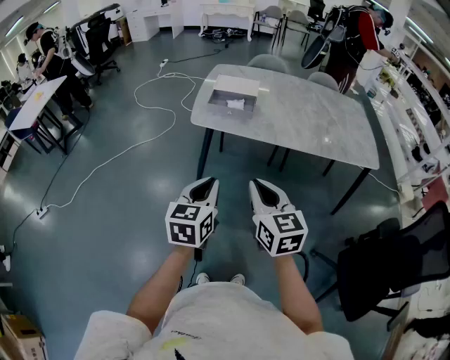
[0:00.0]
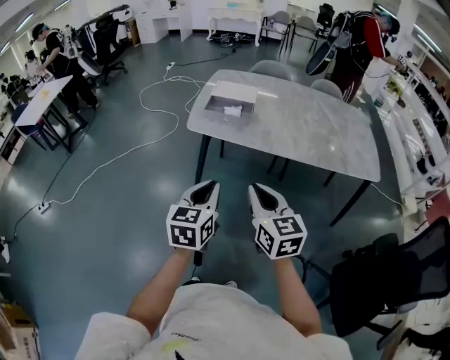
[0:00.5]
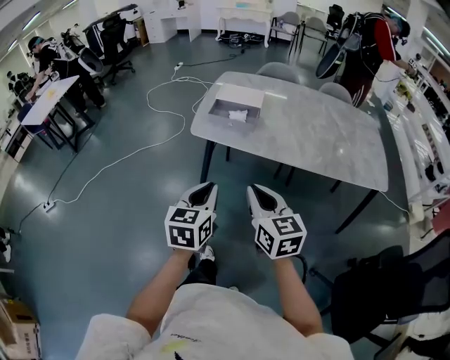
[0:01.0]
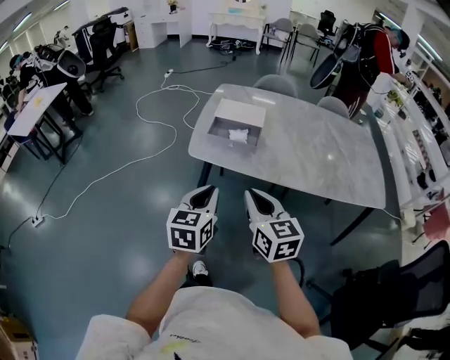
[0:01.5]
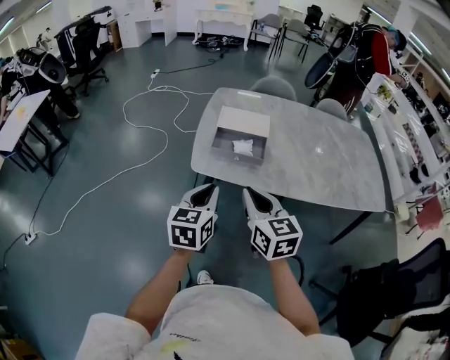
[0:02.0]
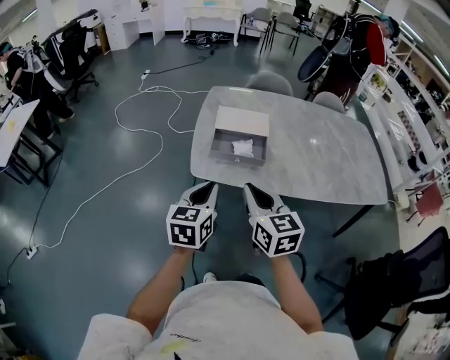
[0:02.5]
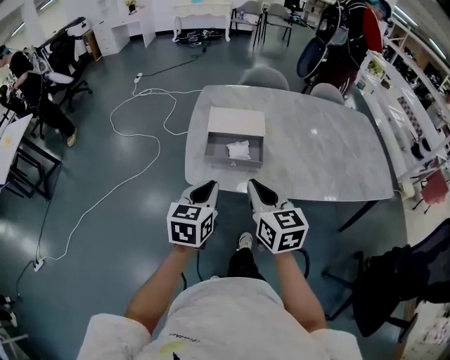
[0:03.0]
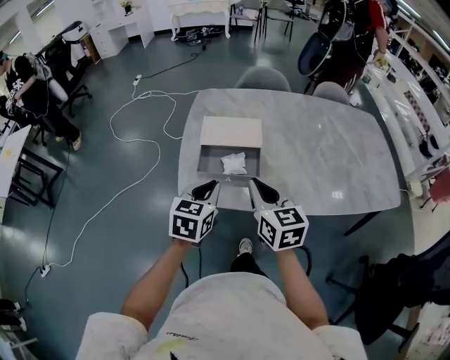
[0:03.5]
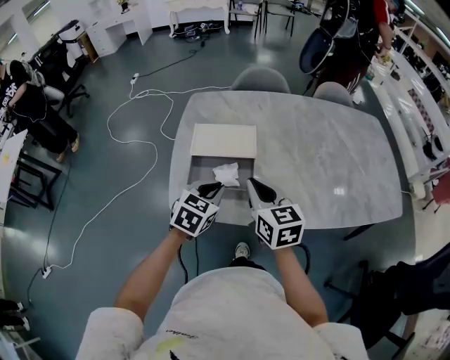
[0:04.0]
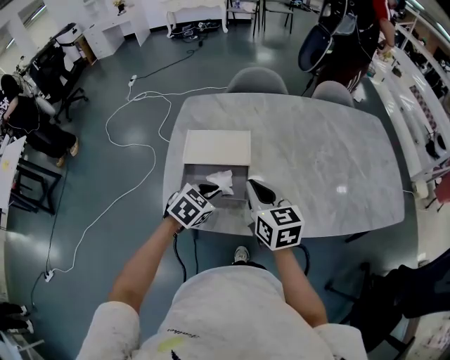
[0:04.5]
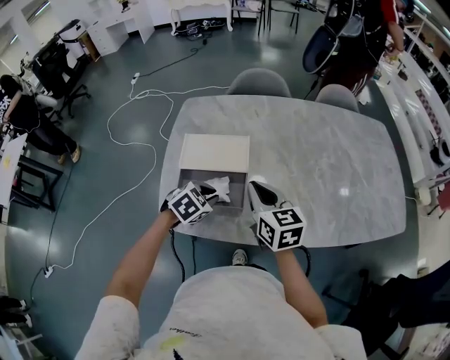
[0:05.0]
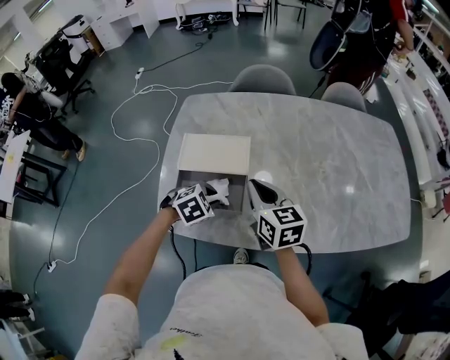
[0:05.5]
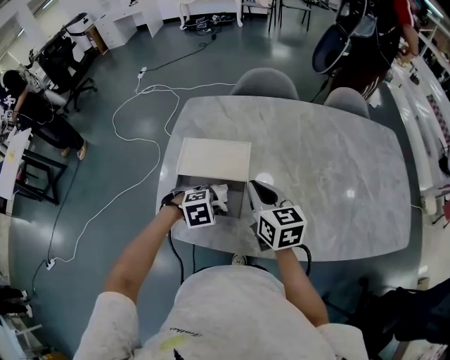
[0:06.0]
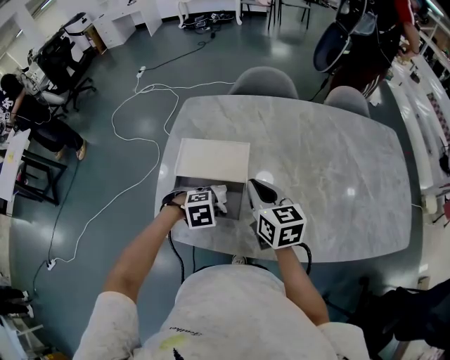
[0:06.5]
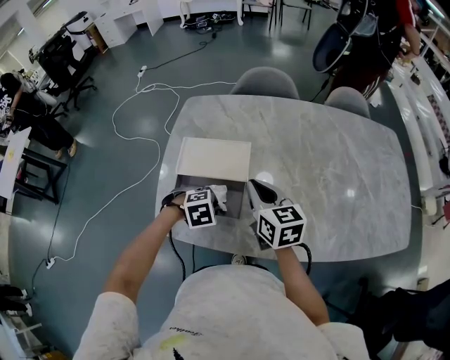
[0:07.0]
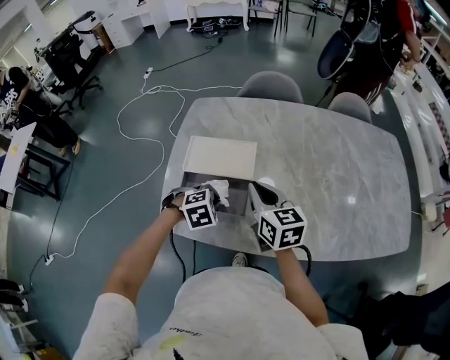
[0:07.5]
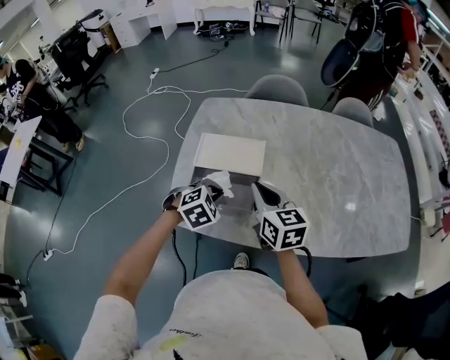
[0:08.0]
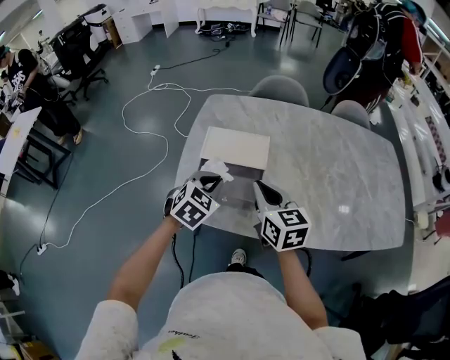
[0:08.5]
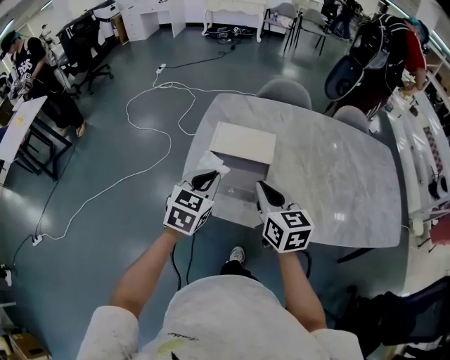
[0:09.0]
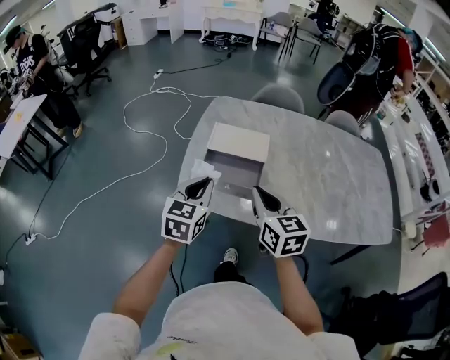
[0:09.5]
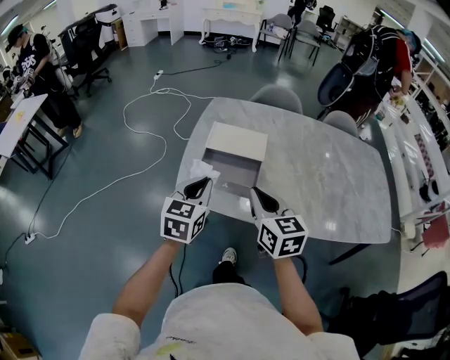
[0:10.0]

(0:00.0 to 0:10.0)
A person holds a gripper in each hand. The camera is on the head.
0:00.0 - 0:02.0: The two grippers go approximately 25 cm forward.
0:02.0 - 0:04.0: The left gripper heads forward and downward, covering some 25 cm, and turns by about 30 degrees. The right gripper is displaced forward by some 25 cm.
0:04.0 - 0:06.0: The left gripper travels downward and forward by about 15 cm, and points its fingers roughly 40 degrees further downward. Meanwhile the right gripper moves forward, roughly 10 cm.
0:06.0 - 0:08.0: The right gripper moves about 5 cm. The left gripper shifts some 5 cm upward, and rotates some 20 degrees.
0:08.0 - 0:10.0: The right gripper goes about 15 cm backward and upward, while the left gripper shifts roughly 20 cm upward, backward and to the left, and tips its fingers upward by about 40 degrees.

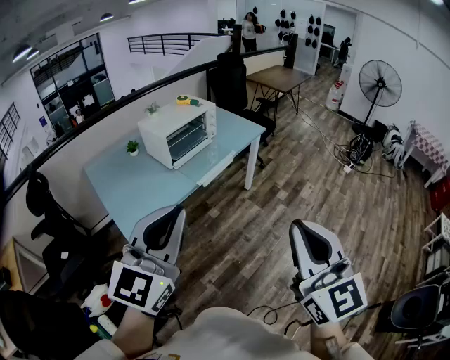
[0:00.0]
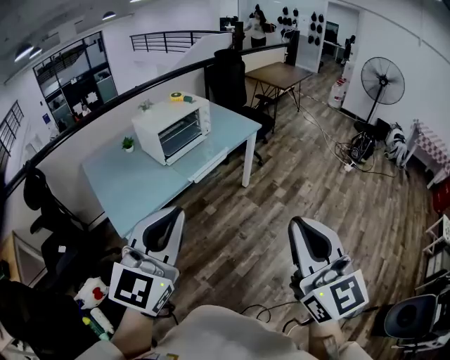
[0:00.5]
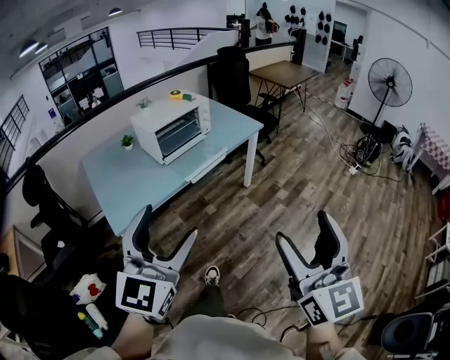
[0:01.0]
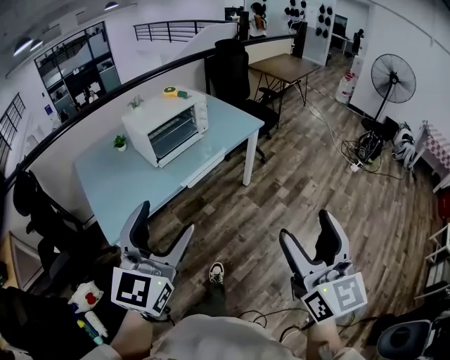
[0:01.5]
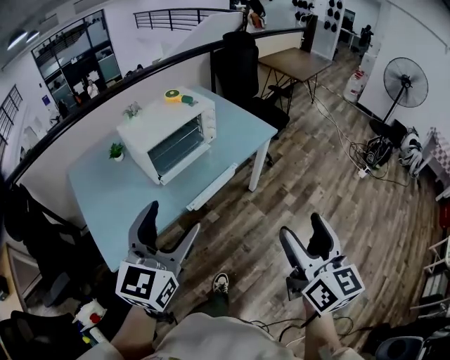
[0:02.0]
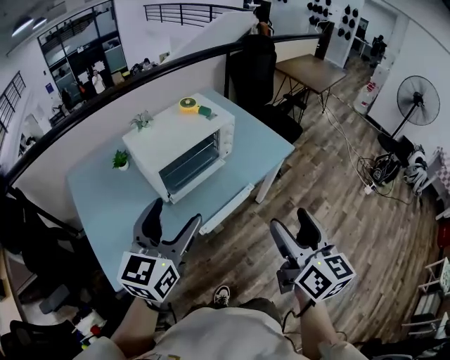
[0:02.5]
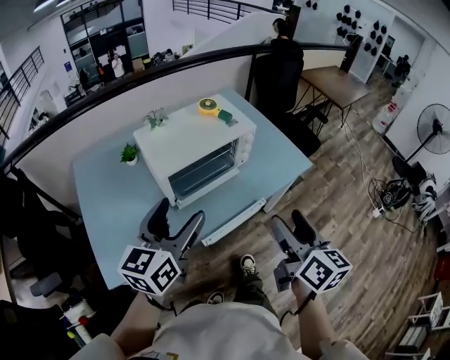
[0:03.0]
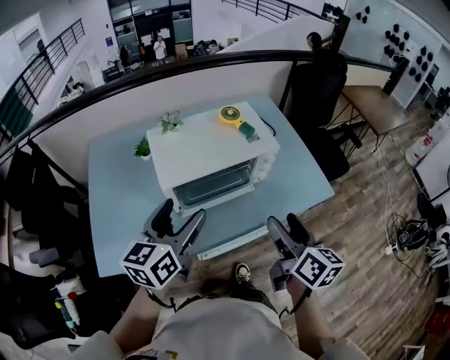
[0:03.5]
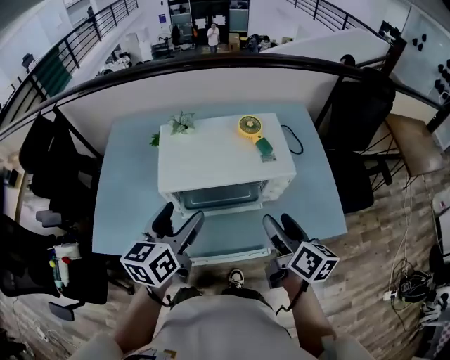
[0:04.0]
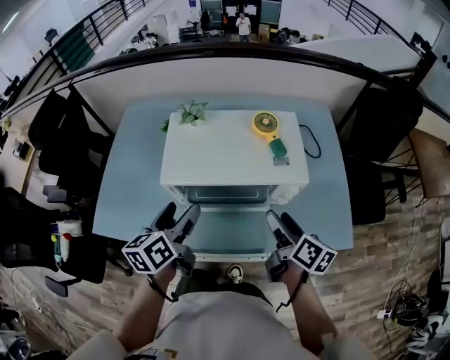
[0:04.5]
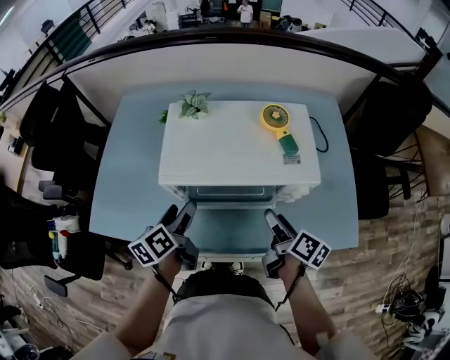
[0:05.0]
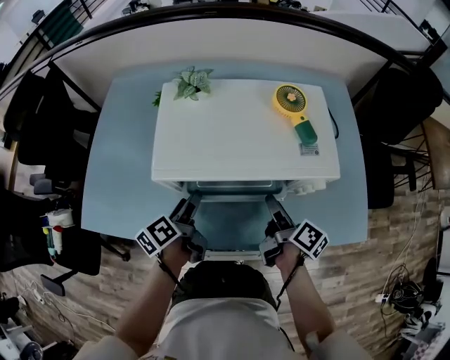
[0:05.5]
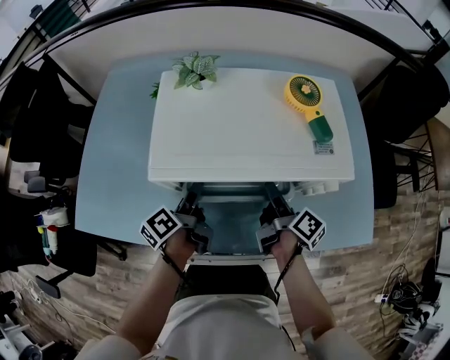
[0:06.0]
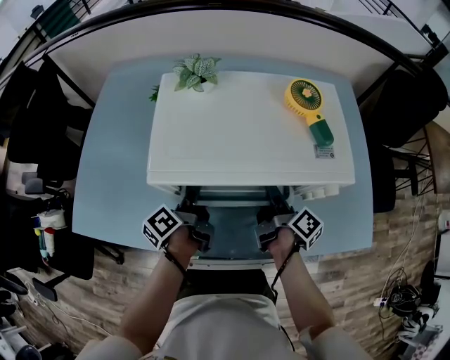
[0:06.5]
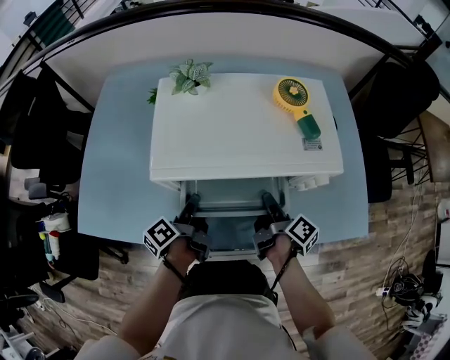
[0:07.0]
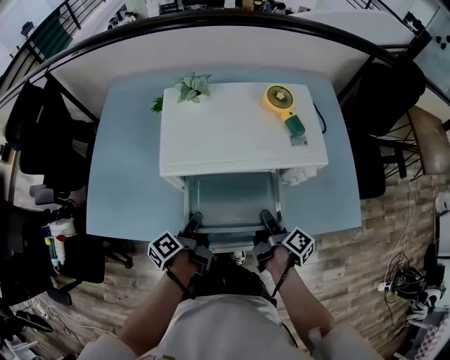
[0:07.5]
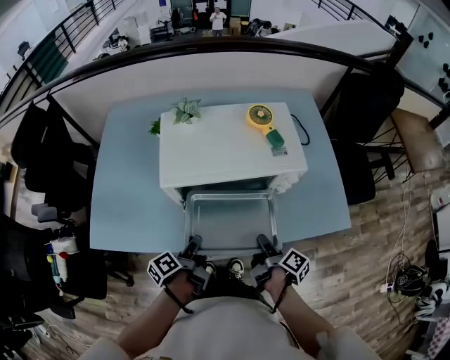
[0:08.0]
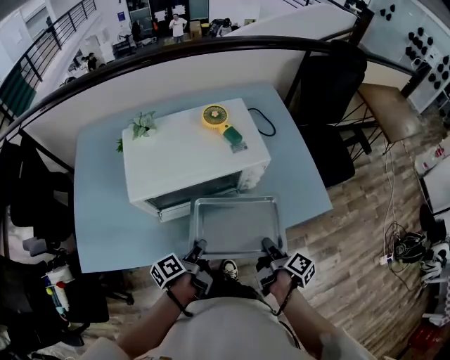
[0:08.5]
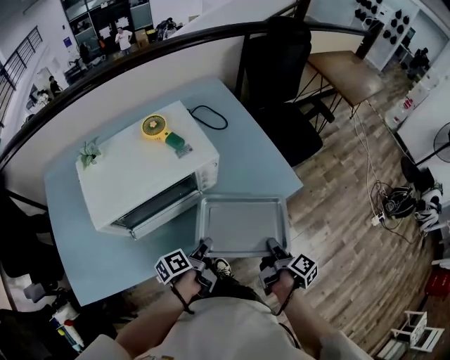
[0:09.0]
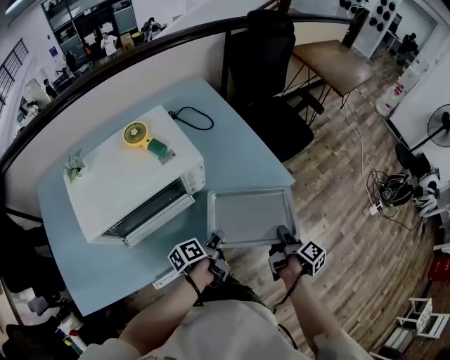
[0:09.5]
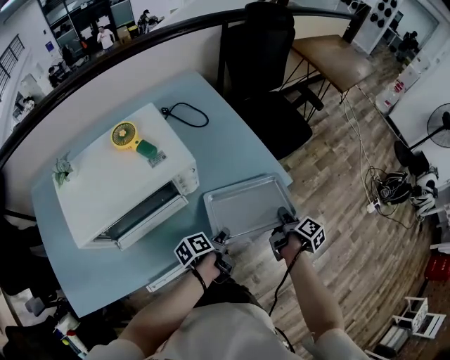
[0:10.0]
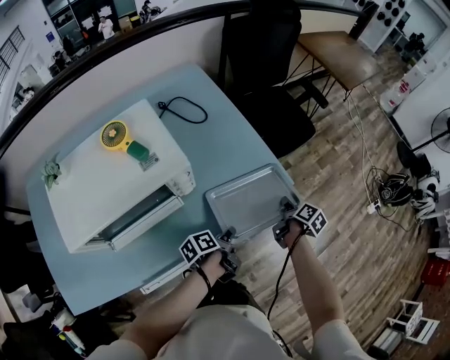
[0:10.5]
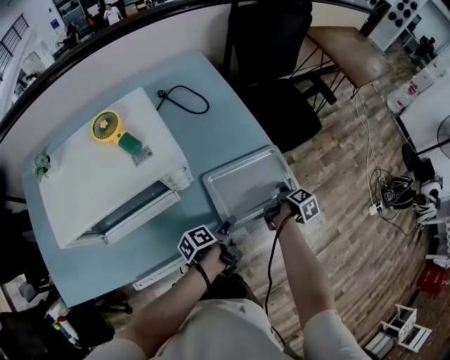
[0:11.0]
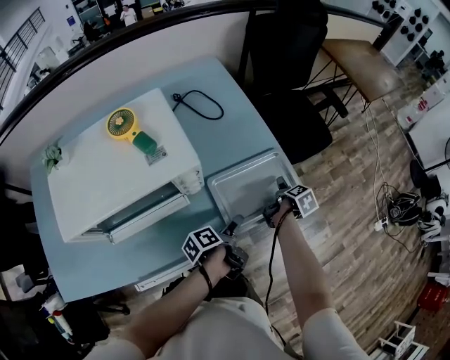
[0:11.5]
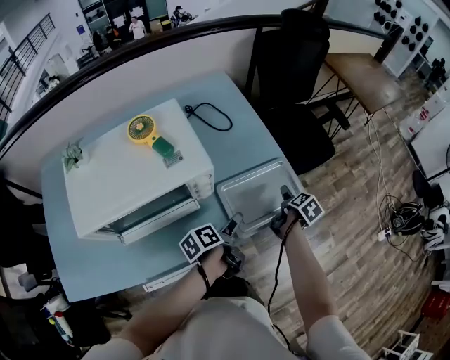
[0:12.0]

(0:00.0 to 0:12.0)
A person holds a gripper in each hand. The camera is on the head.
0:00.0 - 0:02.0: The grippers both shift forward by about 30 cm. The right gripper turns by approximately 20 degrees, and opens its fingers. Meanwhile the left gripper opens up.
0:02.0 - 0:04.0: The left gripper ends up roughly 35 cm from where it was, and changes its angle by some 50 degrees, while the right gripper ends up roughly 50 cm from where it was, and turns by about 50 degrees.
0:04.0 - 0:06.0: The right gripper moves downward and forward, roughly 25 cm, and turns by about 30 degrees. Meanwhile the left gripper travels downward by about 30 cm, and rotates around the line of its fingers by roughly 50 degrees, counterclockwise from behind.
0:06.0 - 0:08.0: Both grippers travel together backward, about 15 cm. The left gripper closes up; the right gripper closes up.
0:08.0 - 0:10.0: The right gripper moves about 35 cm, and swivels approximately 40 degrees. Meanwhile the left gripper changes place by approximately 35 cm, and turns by approximately 40 degrees.
0:10.0 - 0:12.0: The right gripper moves forward, some 10 cm, rotates approximately 30 degrees, and opens its fingers; the left gripper is displaced forward by about 5 cm, and opens up.

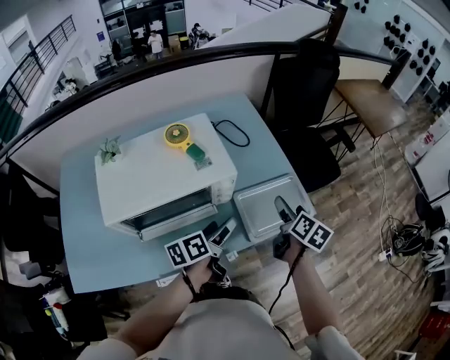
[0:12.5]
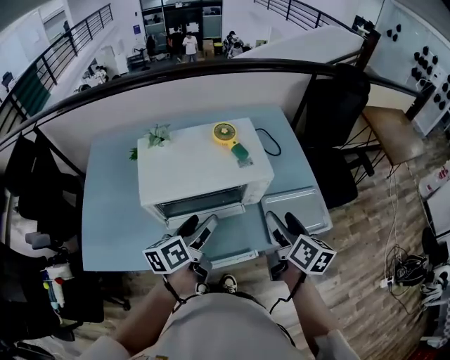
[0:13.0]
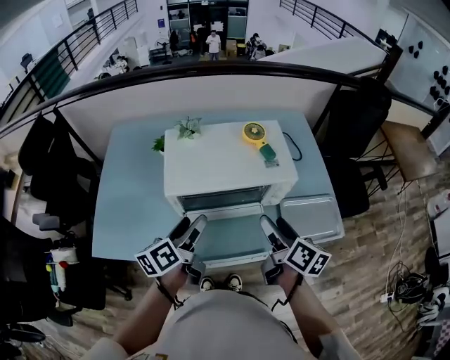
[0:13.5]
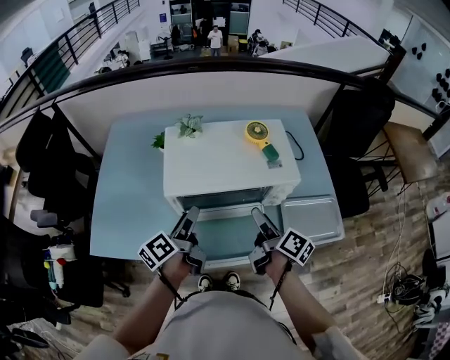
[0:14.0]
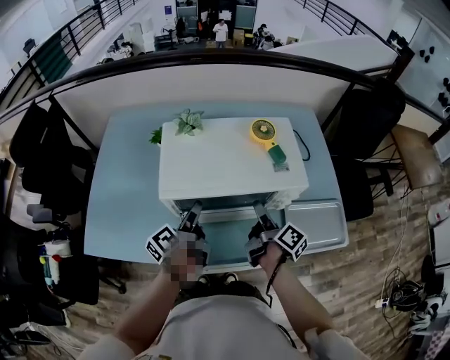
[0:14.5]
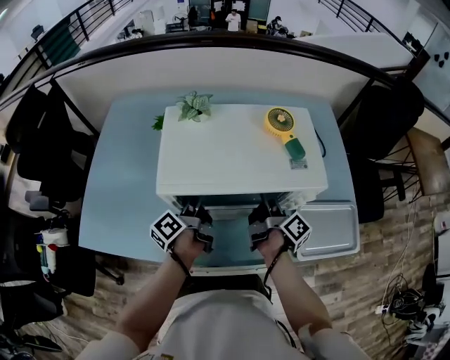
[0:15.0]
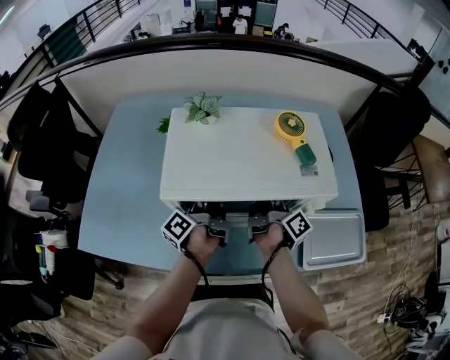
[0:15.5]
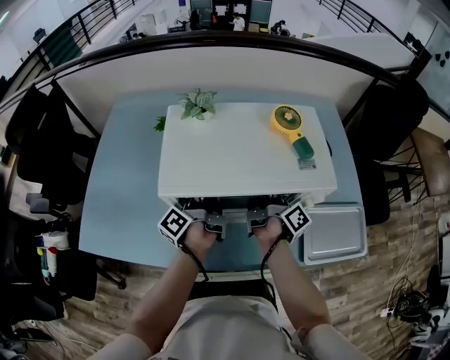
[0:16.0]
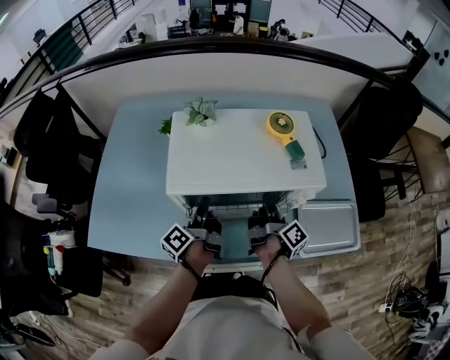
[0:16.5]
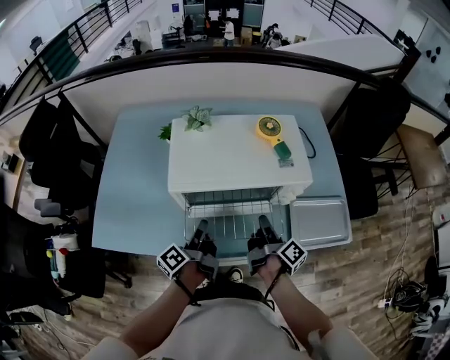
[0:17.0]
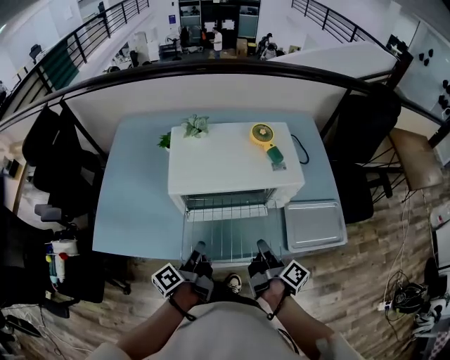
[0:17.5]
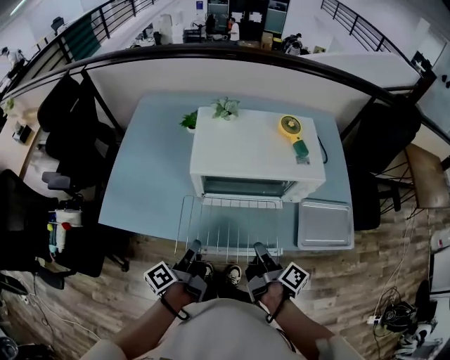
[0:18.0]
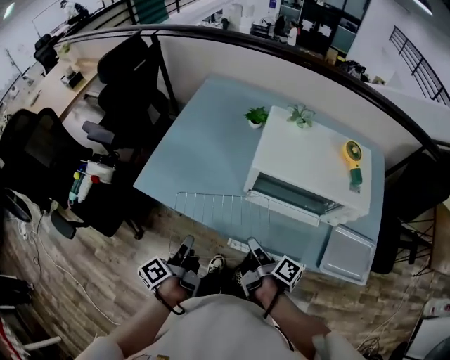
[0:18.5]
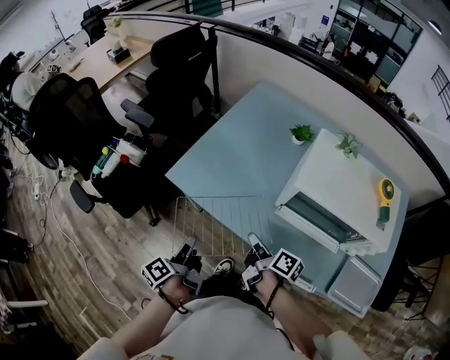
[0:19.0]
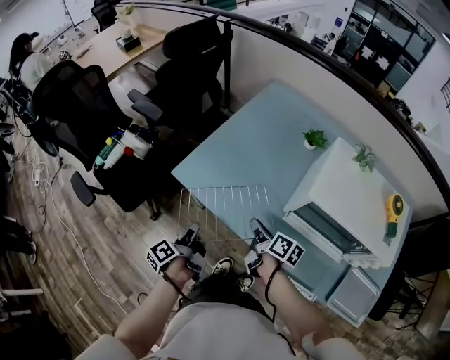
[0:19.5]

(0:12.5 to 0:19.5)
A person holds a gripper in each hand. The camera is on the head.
0:12.5 - 0:14.5: The left gripper moves about 10 cm upward and comes back, and swivels approximately 40 degrees; the right gripper reaches approximately 10 cm upward, then returns, and turns by some 40 degrees.
0:14.5 - 0:16.0: Both grippers move forward, approximately 10 cm. The right gripper closes its fingers. The left gripper turns by approximately 20 degrees, and closes.
0:16.0 - 0:17.5: The two grippers go roughly 25 cm backward.
0:17.5 - 0:19.5: The left gripper shifts by some 35 cm, and rotates some 40 degrees; the right gripper ends up some 35 cm from where it was, and turns by roughly 60 degrees.
